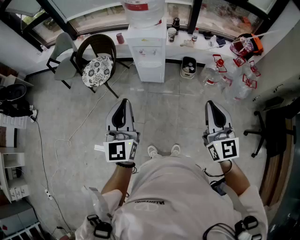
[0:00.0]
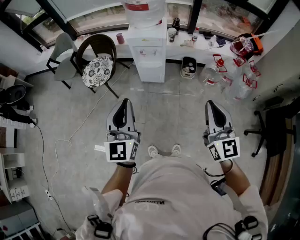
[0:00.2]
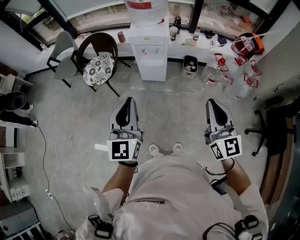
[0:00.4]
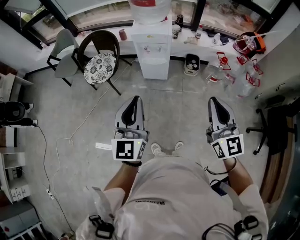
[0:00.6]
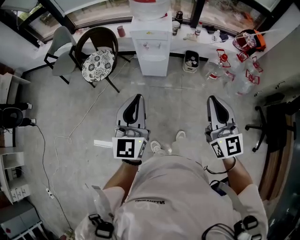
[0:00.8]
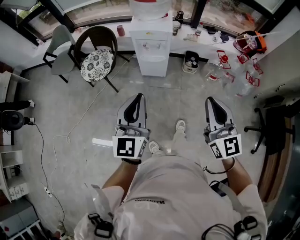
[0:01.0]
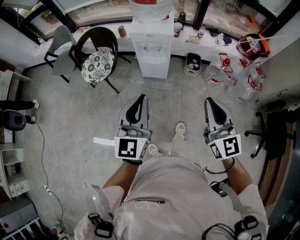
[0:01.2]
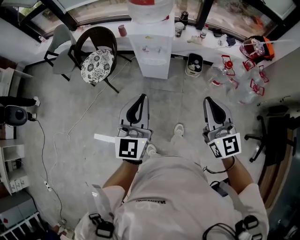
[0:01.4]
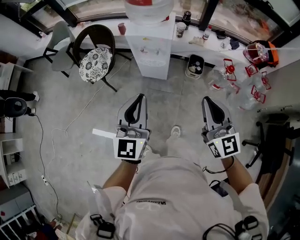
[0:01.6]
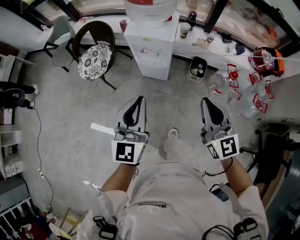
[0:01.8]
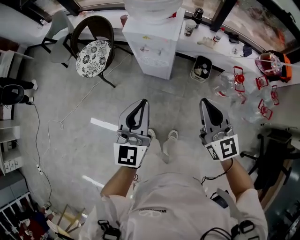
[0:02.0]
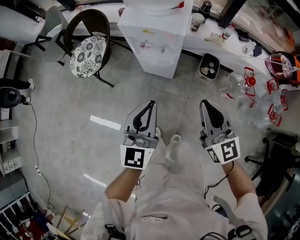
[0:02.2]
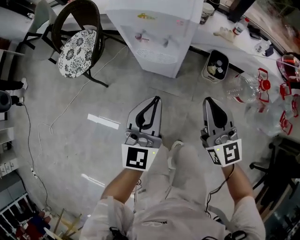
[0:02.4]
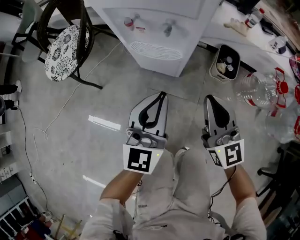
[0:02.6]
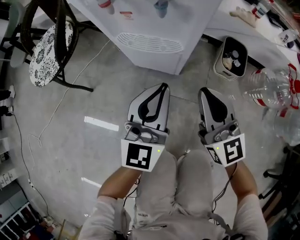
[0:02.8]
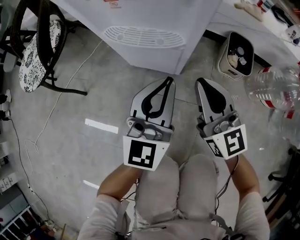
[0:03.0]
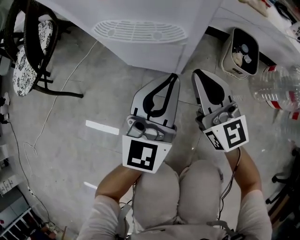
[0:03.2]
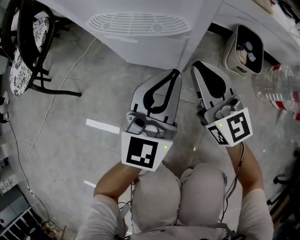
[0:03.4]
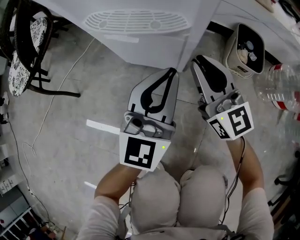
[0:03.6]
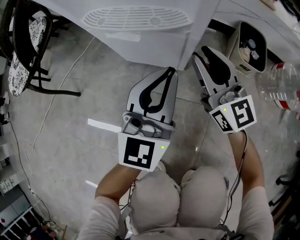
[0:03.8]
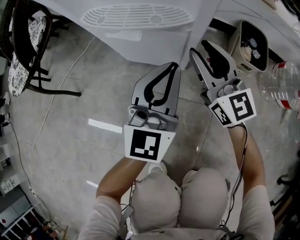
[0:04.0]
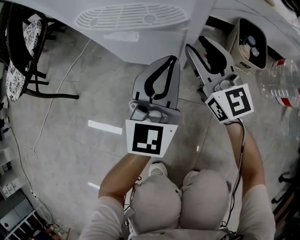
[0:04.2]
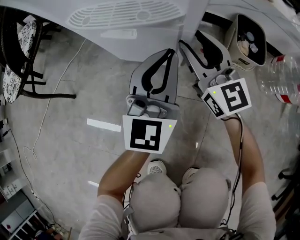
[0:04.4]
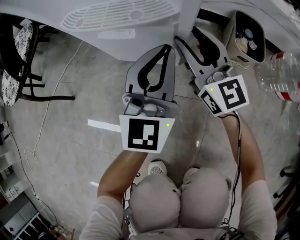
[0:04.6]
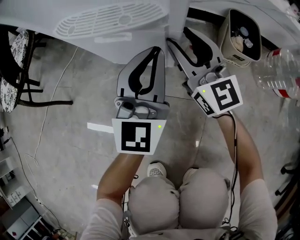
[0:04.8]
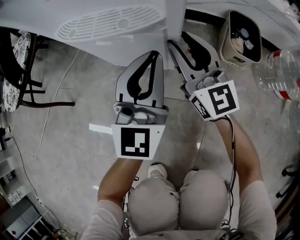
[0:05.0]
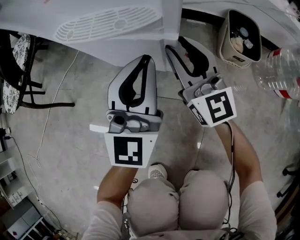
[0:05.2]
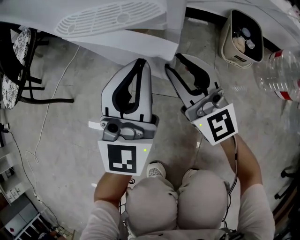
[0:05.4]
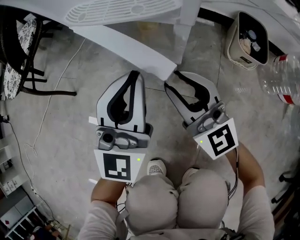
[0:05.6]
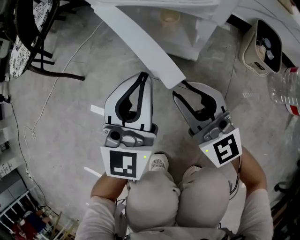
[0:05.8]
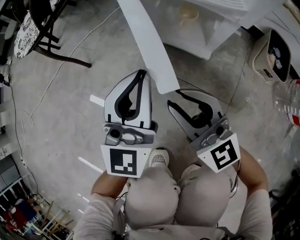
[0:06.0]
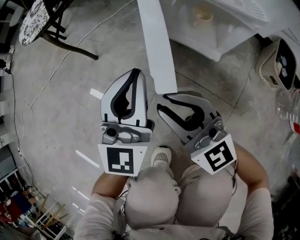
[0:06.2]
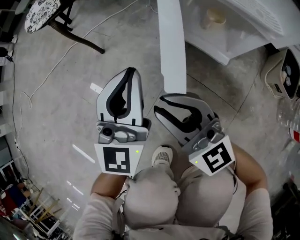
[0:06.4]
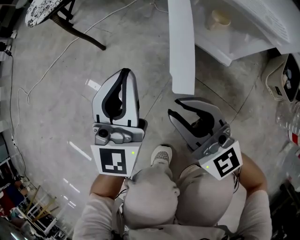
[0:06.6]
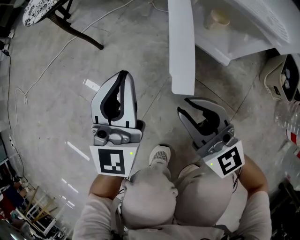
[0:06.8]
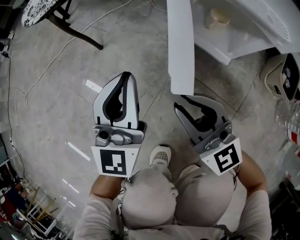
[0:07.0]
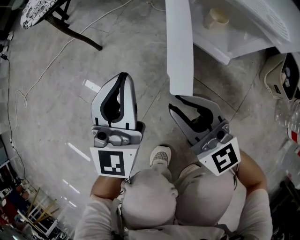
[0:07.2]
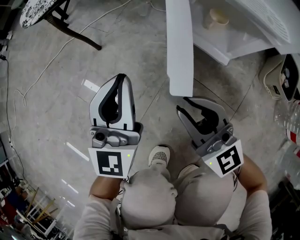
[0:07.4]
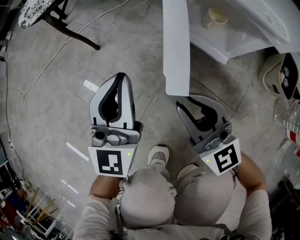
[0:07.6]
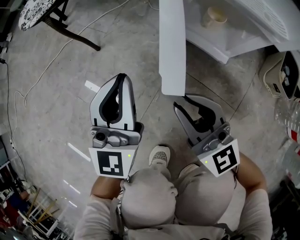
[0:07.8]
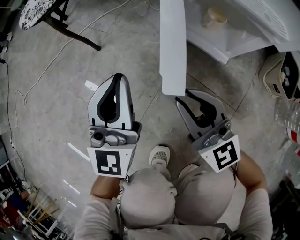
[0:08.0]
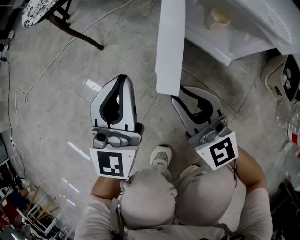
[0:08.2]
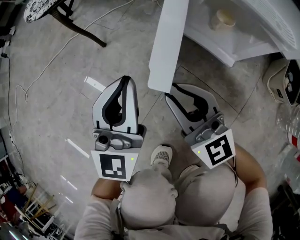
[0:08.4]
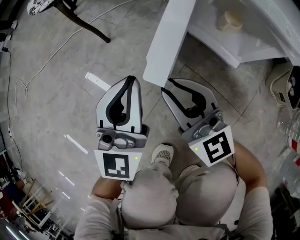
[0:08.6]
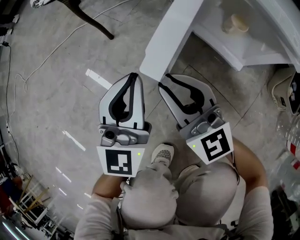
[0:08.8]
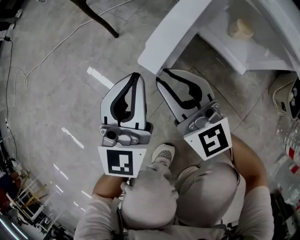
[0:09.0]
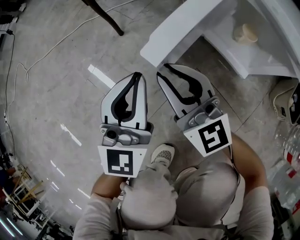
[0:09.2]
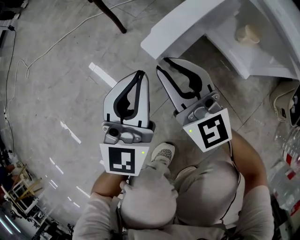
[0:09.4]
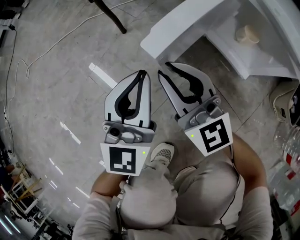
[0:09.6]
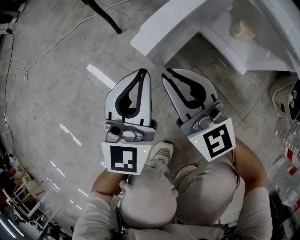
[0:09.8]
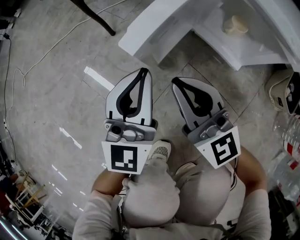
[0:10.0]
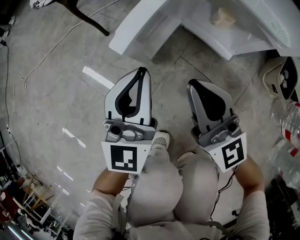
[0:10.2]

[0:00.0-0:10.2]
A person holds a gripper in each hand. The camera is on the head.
0:00.0 to 0:01.4: The right gripper is displaced forward by approximately 10 cm. Meanwhile the left gripper is displaced forward and to the right by roughly 10 cm.
0:01.4 to 0:03.0: Both grippers travel together downward and forward, some 70 cm.
0:03.0 to 0:04.4: The two grippers go some 15 cm downward and forward. The right gripper opens its fingers.
0:04.4 to 0:05.8: The right gripper shifts about 15 cm backward and to the left, while the left gripper heads to the left and backward, covering roughly 10 cm.
0:05.8 to 0:07.2: Both grippers travel together to the left, some 15 cm.
0:07.2 to 0:08.8: The right gripper shifts approximately 10 cm to the left and forward.
0:08.8 to 0:10.2: The left gripper ends up approximately 5 cm from where it was. The right gripper shifts roughly 10 cm to the right and upward.

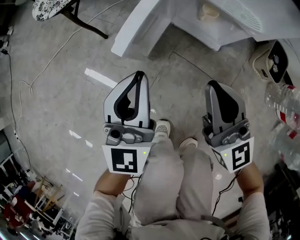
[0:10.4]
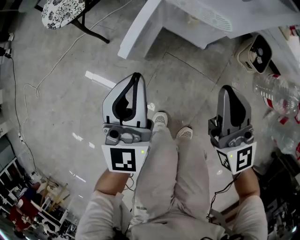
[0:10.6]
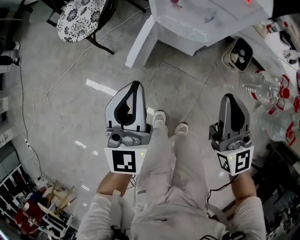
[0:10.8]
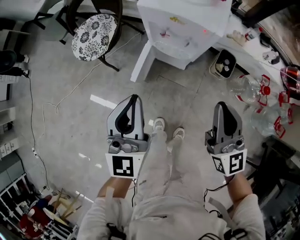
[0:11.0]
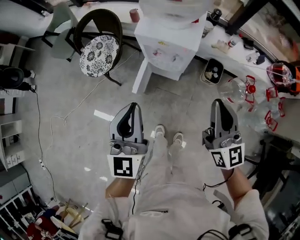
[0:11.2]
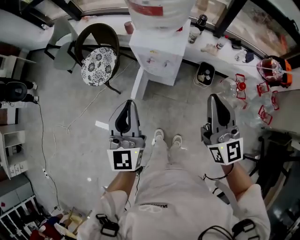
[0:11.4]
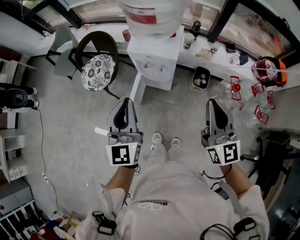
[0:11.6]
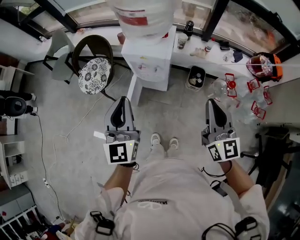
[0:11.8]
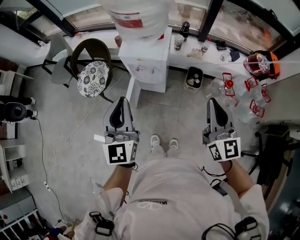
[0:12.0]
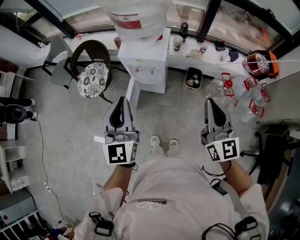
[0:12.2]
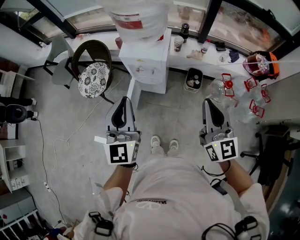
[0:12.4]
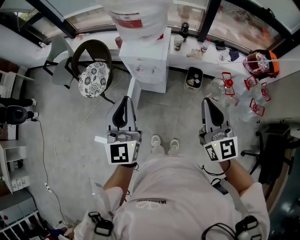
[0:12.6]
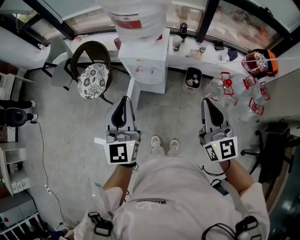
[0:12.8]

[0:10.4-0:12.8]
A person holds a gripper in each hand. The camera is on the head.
0:10.4 to 0:11.6: Both grippers travel together upward, roughly 60 cm. The right gripper turns by approximately 30 degrees.
0:11.6 to 0:12.8: There are only small adjustments of the grippers.

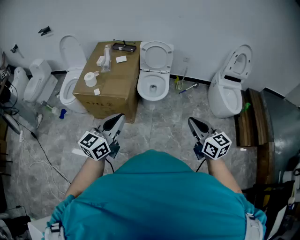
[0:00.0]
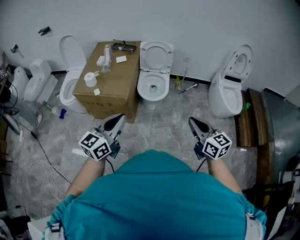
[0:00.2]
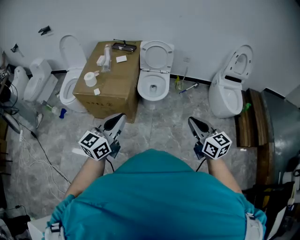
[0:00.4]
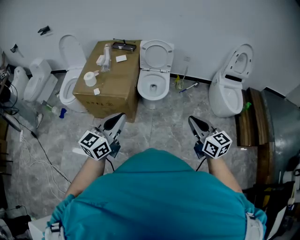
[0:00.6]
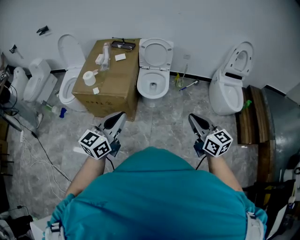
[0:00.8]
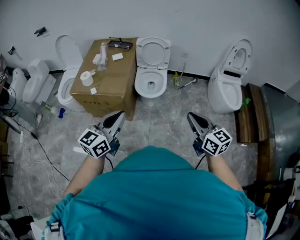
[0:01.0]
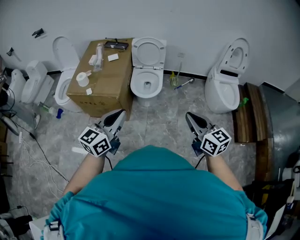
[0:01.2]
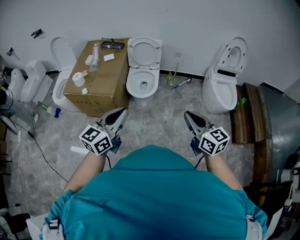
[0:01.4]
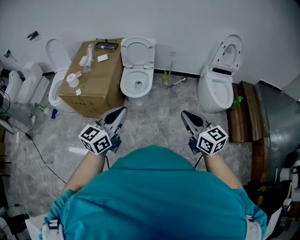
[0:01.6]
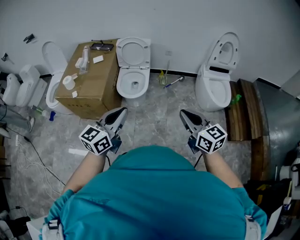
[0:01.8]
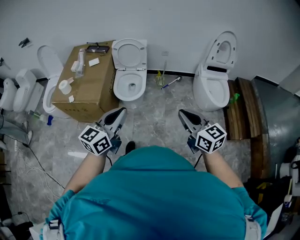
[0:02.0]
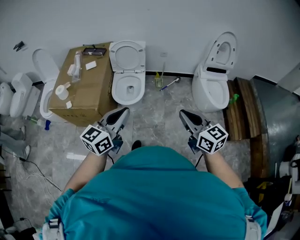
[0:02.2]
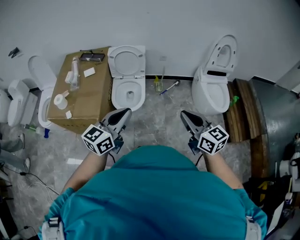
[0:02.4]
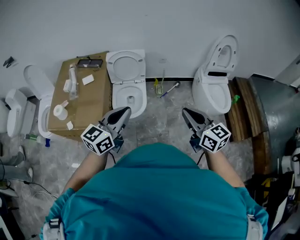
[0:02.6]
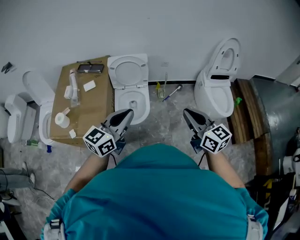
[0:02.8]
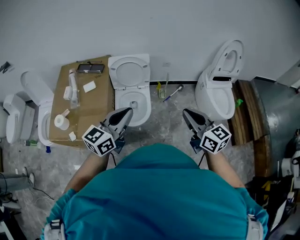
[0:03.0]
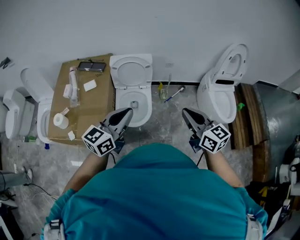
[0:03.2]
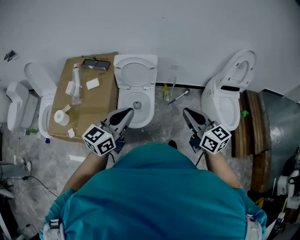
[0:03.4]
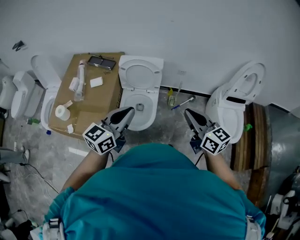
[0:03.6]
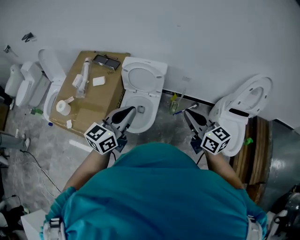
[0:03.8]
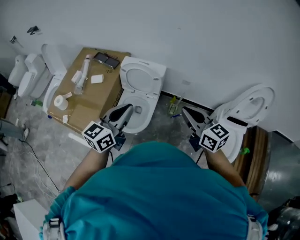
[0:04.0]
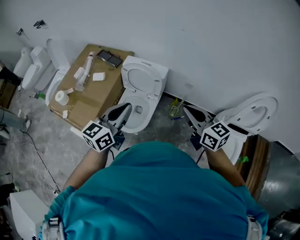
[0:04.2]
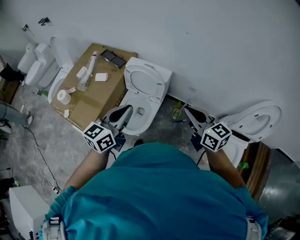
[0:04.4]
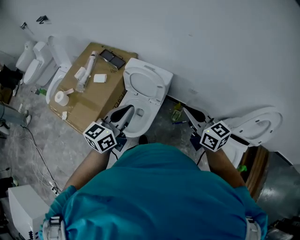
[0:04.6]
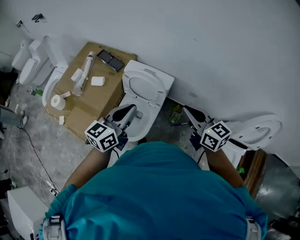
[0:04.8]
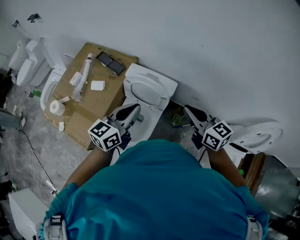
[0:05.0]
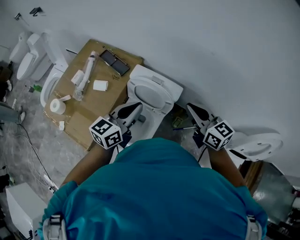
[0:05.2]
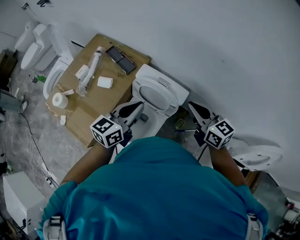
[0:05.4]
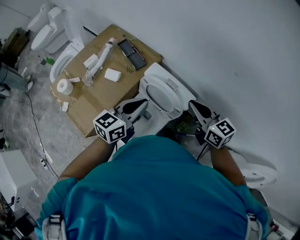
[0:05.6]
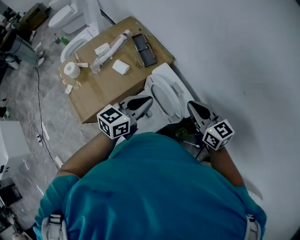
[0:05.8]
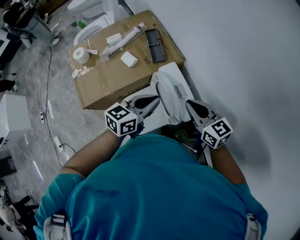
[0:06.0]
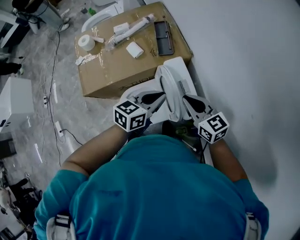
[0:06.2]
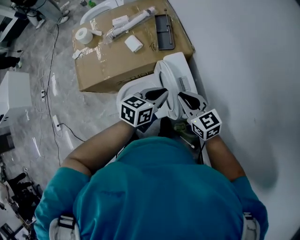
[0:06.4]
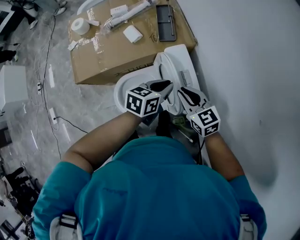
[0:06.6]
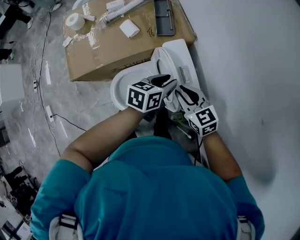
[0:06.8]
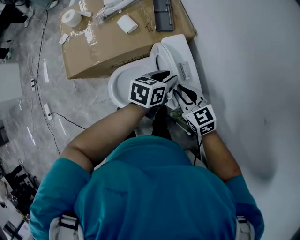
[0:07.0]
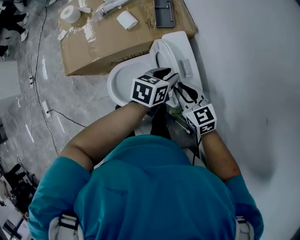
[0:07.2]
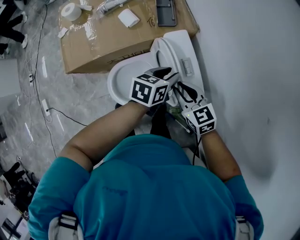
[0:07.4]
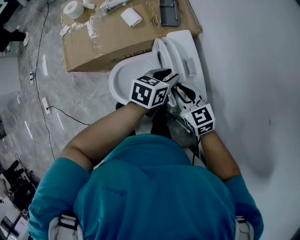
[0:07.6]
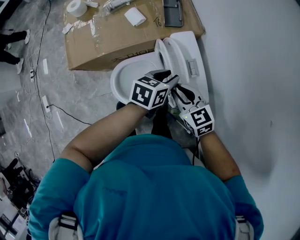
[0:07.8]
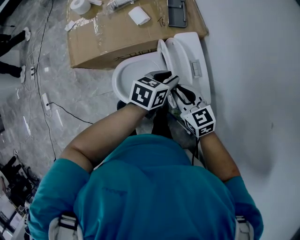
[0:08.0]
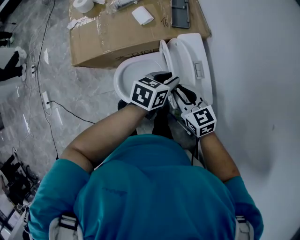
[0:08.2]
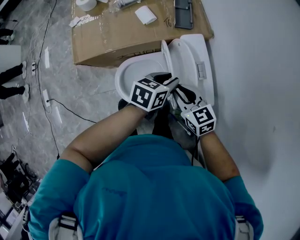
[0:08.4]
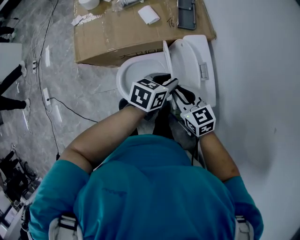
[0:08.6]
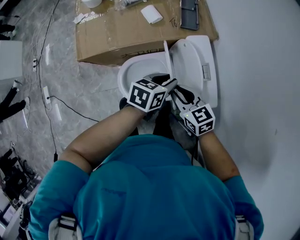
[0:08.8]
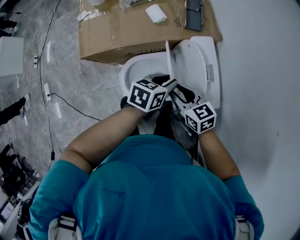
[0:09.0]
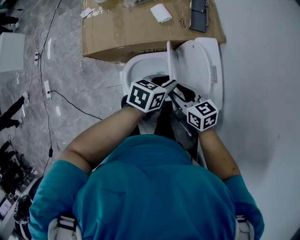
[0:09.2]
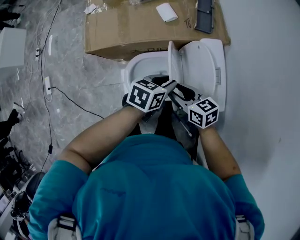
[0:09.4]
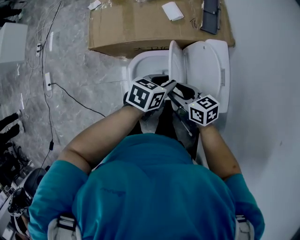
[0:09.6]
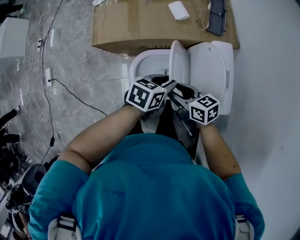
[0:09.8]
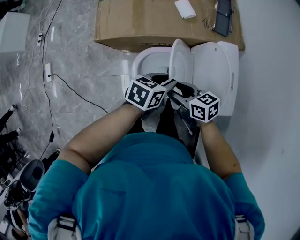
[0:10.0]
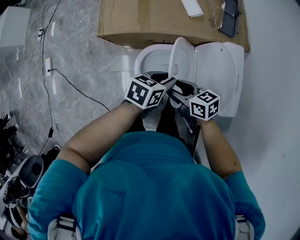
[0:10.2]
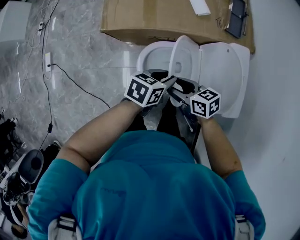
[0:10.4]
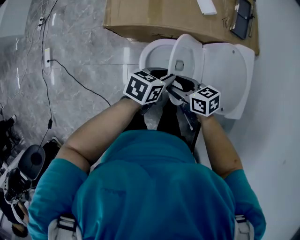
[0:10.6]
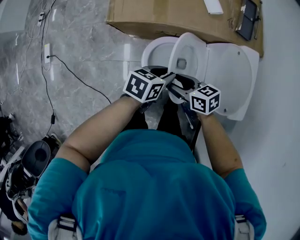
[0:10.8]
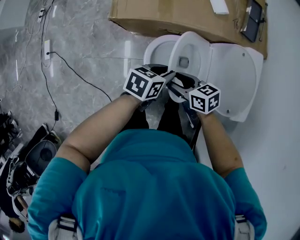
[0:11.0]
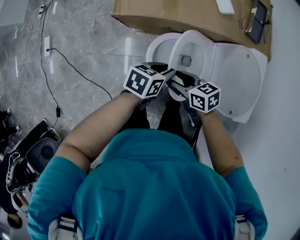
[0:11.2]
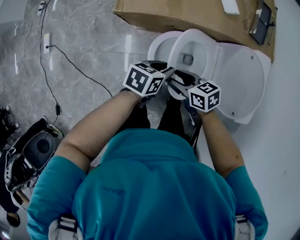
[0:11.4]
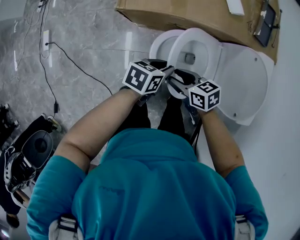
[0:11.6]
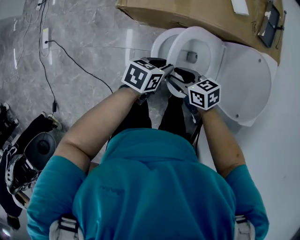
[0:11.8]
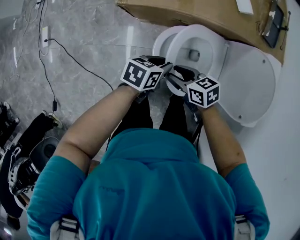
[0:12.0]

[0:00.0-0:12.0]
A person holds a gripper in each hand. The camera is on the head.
0:00.0 to 0:01.6: The grippers both shift to the right by about 15 cm.
0:01.6 to 0:03.0: The grippers both shift forward by roughly 30 cm.
0:03.0 to 0:04.4: The left gripper moves approximately 25 cm, and turns by about 30 degrees; the right gripper moves about 30 cm, and swivels roughly 30 degrees.
0:04.4 to 0:06.0: The left gripper shifts by about 30 cm, and rotates about 30 degrees. Meanwhile the right gripper changes place by some 40 cm, and swivels roughly 40 degrees.
0:06.0 to 0:07.6: The grippers both shift downward by about 15 cm. The right gripper swivels roughly 20 degrees. Meanwhile the left gripper changes its angle by approximately 30 degrees, and opens up.
0:07.6 to 0:09.0: The grippers both shift to the left by roughly 10 cm.
0:09.0 to 0:10.4: The right gripper ends up roughly 15 cm from where it was, rotates about 30 degrees, and opens. Meanwhile the left gripper changes place by roughly 15 cm.
0:10.4 to 0:12.0: Both grippers travel together downward, about 10 cm.
